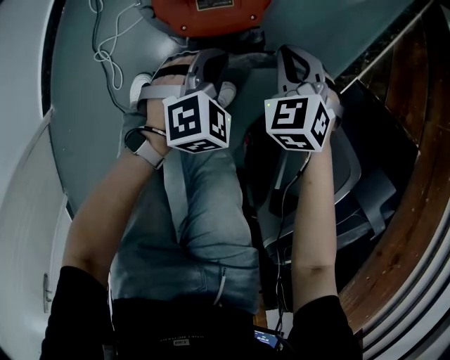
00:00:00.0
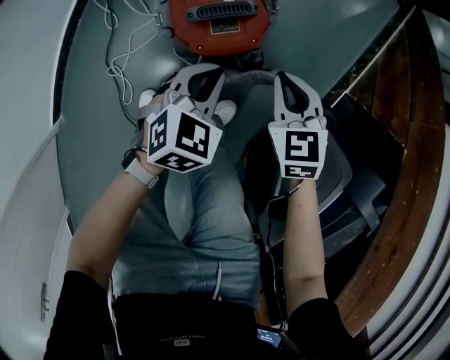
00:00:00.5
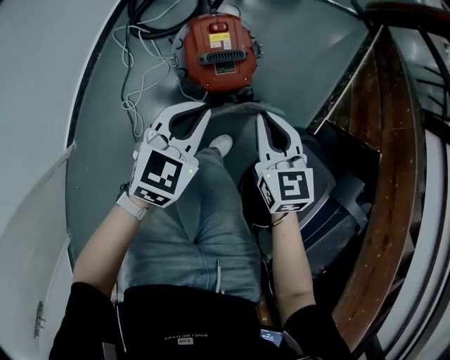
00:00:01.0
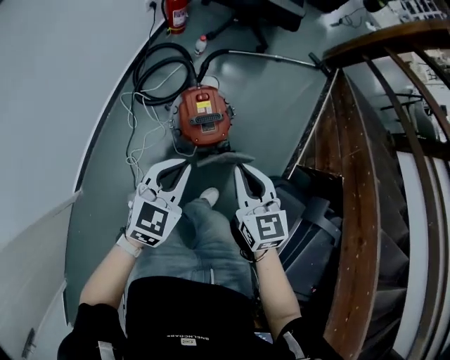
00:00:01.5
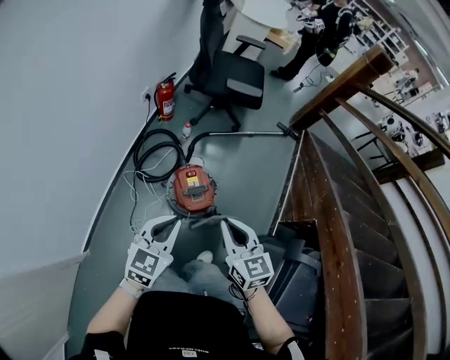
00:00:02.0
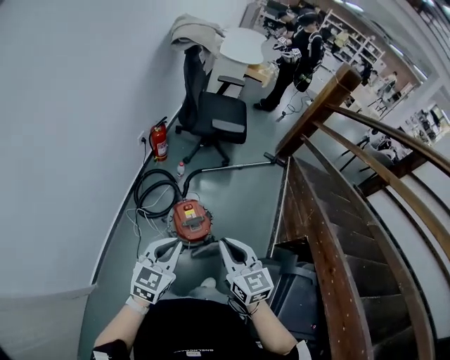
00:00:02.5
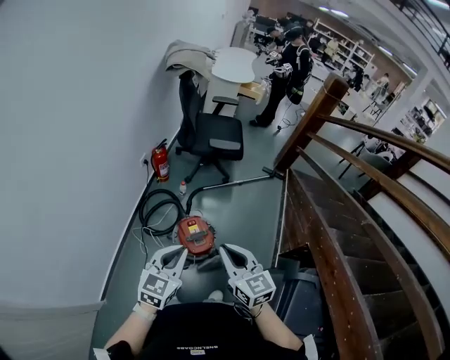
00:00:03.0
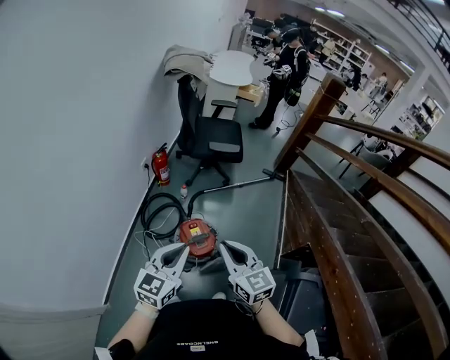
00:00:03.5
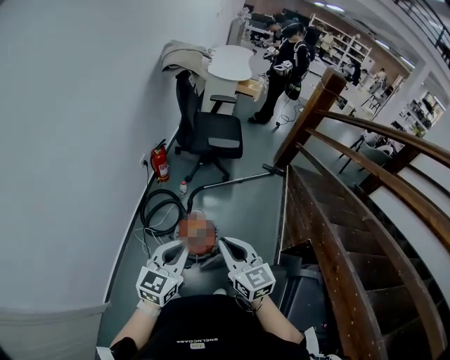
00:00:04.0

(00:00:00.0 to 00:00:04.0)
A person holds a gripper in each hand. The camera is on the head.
00:00:00.0 - 00:00:02.0: Both grippers travel together upward, some 60 cm. The right gripper points its fingers roughly 40 degrees further upward. Meanwhile the left gripper tips its fingers upward by about 40 degrees.
00:00:02.0 - 00:00:04.0: The grippers both shift upward by approximately 20 cm.

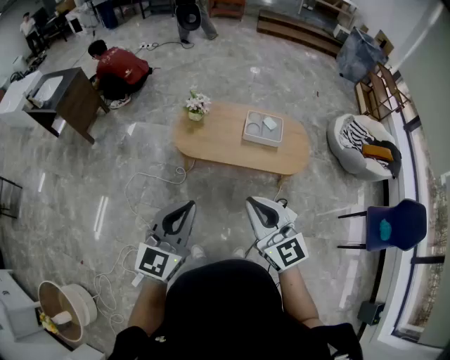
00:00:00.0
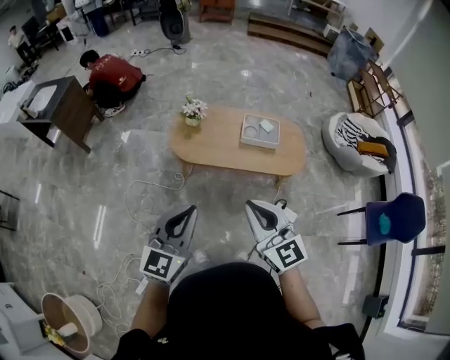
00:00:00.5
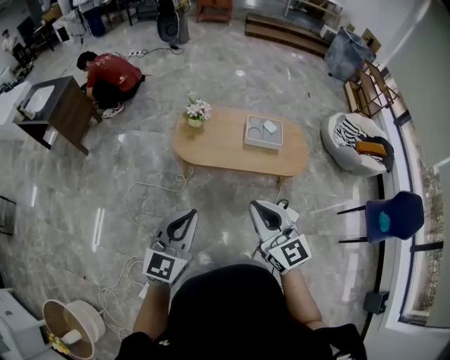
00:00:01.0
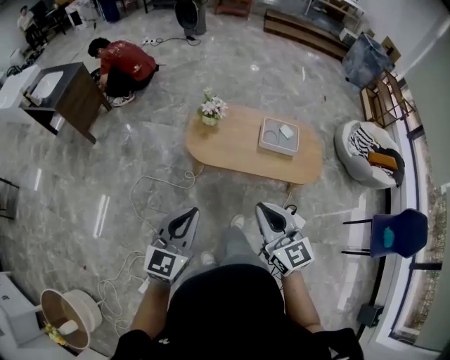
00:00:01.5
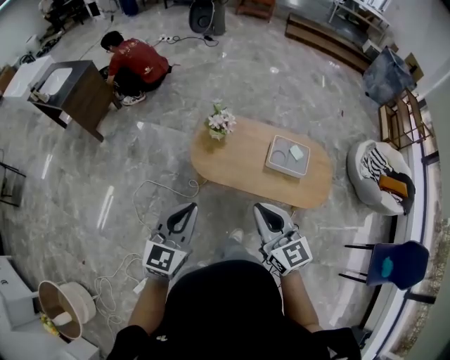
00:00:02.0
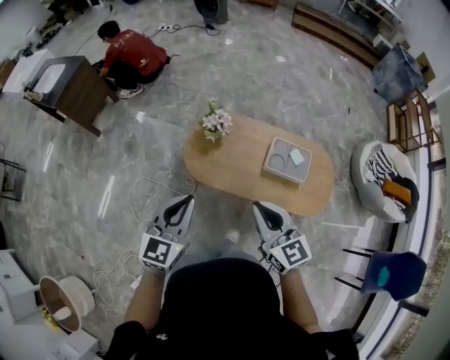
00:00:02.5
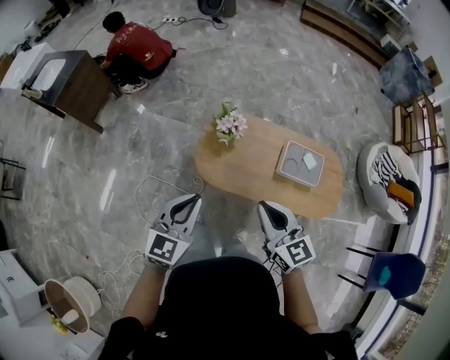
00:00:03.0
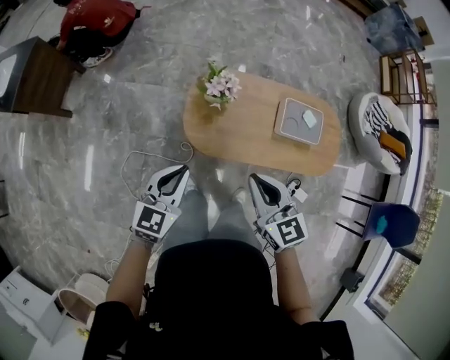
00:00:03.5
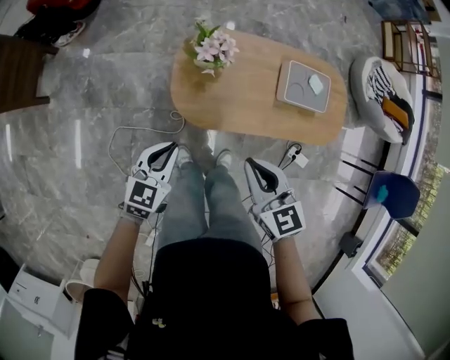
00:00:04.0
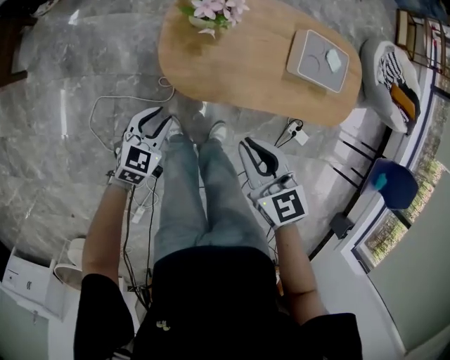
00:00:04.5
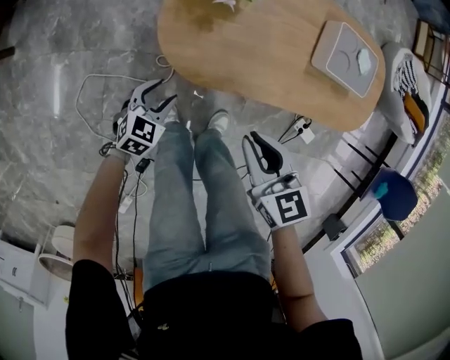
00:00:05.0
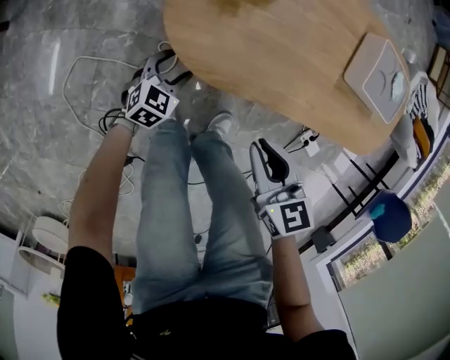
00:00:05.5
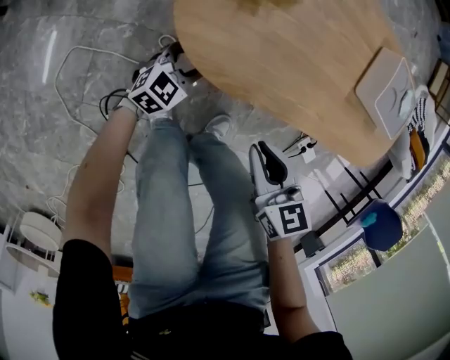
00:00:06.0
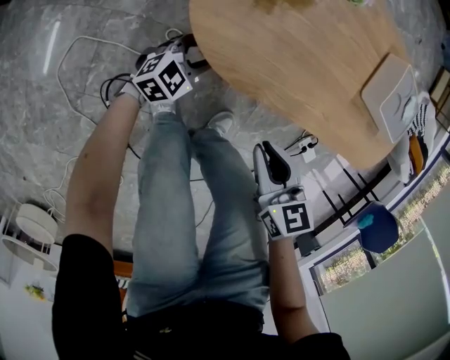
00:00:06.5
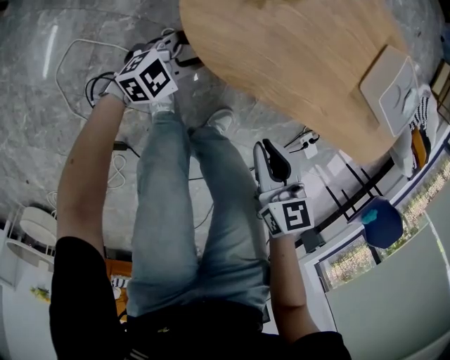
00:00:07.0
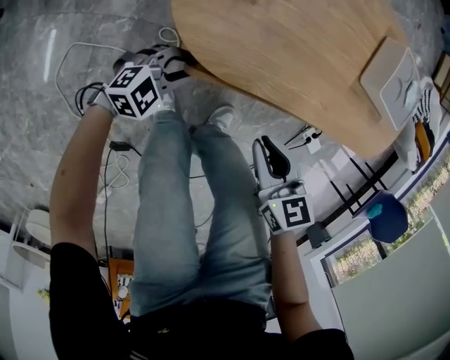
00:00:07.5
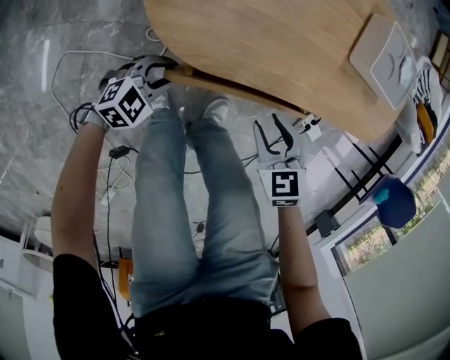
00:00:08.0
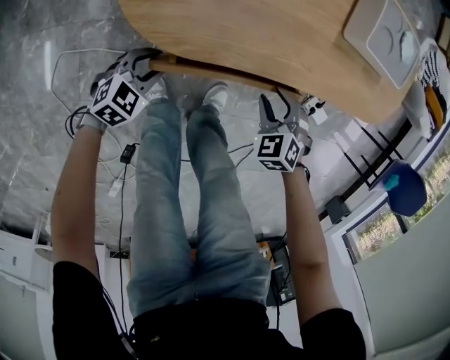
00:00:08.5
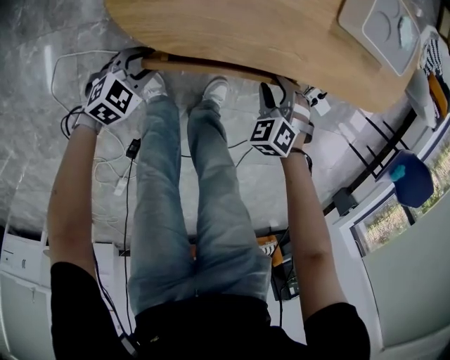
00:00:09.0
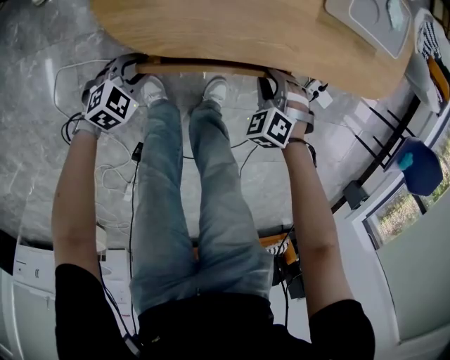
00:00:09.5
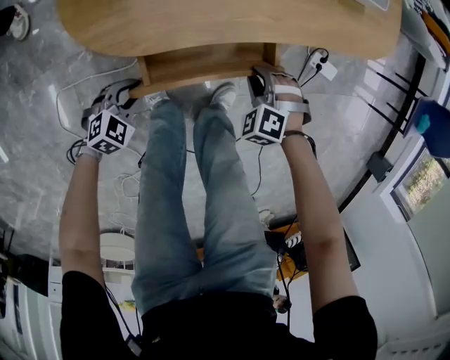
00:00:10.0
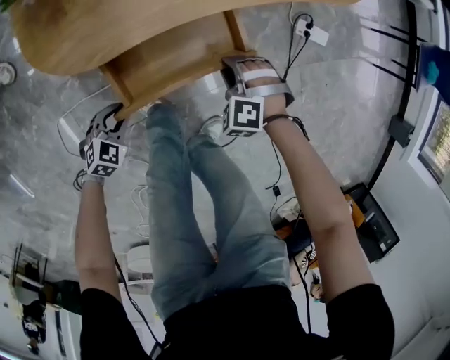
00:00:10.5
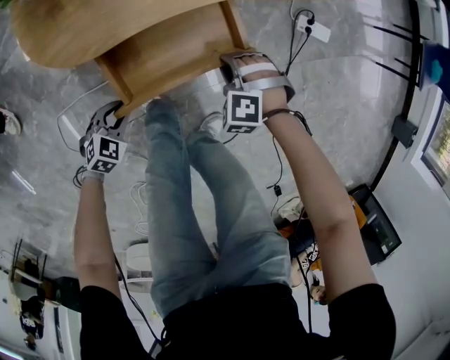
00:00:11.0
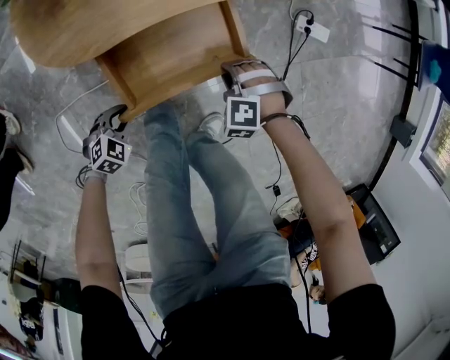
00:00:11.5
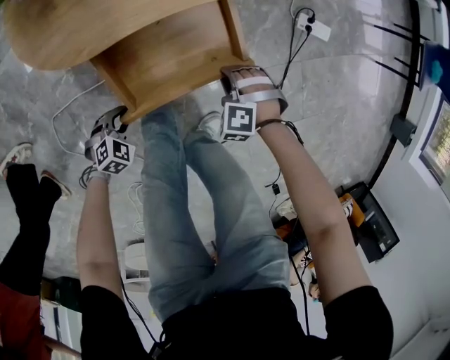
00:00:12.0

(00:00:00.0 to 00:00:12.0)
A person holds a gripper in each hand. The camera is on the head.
00:00:00.0 - 00:00:02.0: The right gripper moves forward, about 25 cm, while the left gripper travels forward and to the left by some 25 cm.
00:00:02.0 - 00:00:04.0: The left gripper heads downward, forward and to the left, covering roughly 40 cm, and turns by about 30 degrees. The right gripper shifts approximately 35 cm forward, downward and to the left, and turns by about 30 degrees.
00:00:04.0 - 00:00:06.0: The two grippers go roughly 50 cm downward. The left gripper opens up.
00:00:06.0 - 00:00:08.0: The left gripper travels backward by about 10 cm, changes its angle by some 20 degrees, and closes its fingers, while the right gripper goes some 5 cm to the right, turns by about 20 degrees, and opens its fingers.
00:00:08.0 - 00:00:10.0: The right gripper shifts by roughly 15 cm, and rotates some 40 degrees. Meanwhile the left gripper moves roughly 5 cm.
00:00:10.0 - 00:00:12.0: The right gripper moves about 15 cm. Meanwhile the left gripper changes place by about 15 cm.

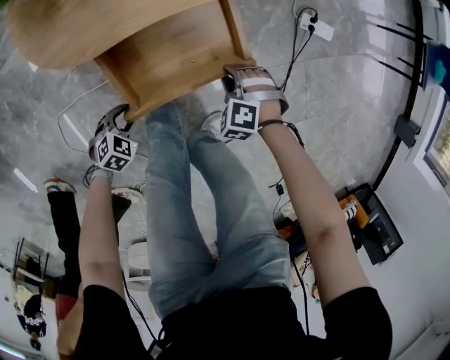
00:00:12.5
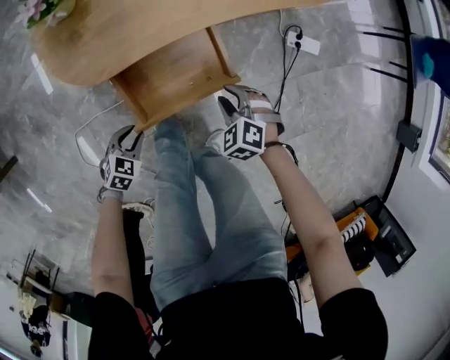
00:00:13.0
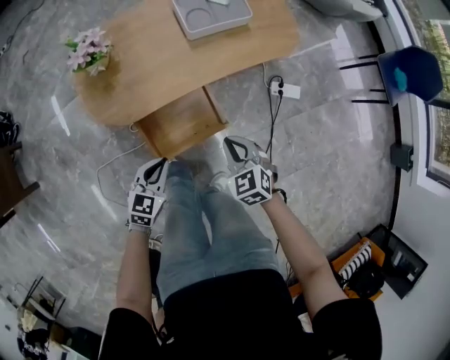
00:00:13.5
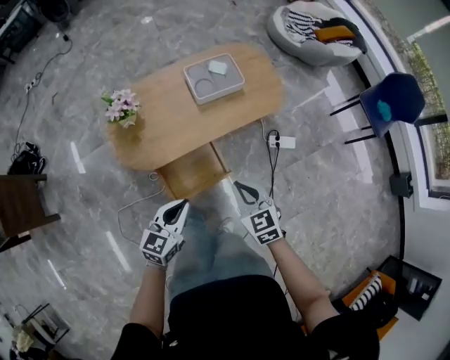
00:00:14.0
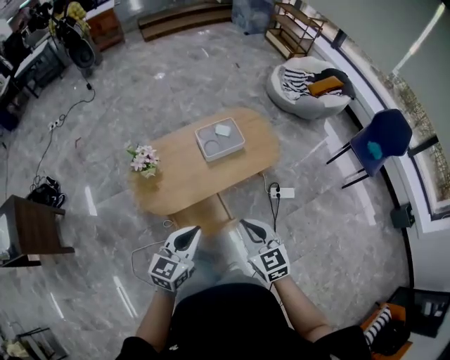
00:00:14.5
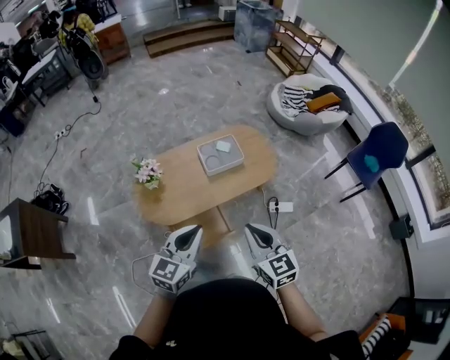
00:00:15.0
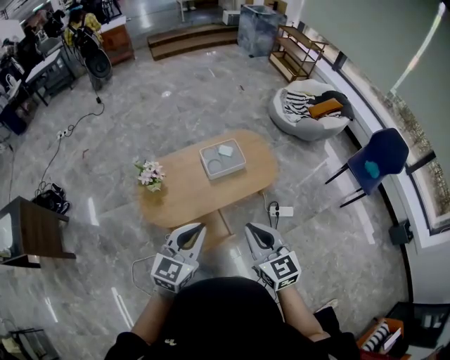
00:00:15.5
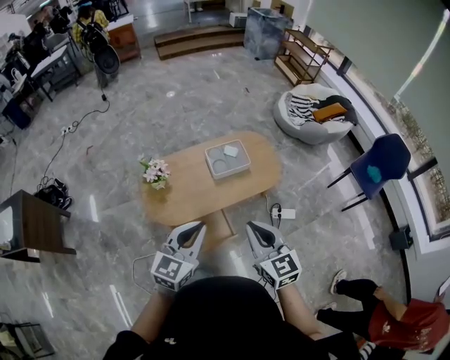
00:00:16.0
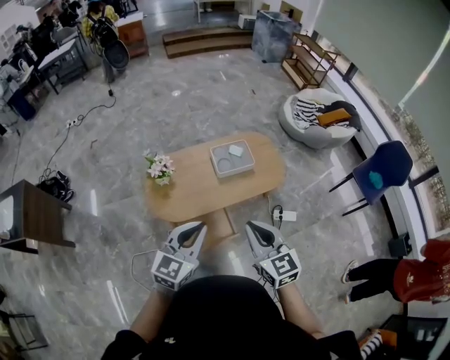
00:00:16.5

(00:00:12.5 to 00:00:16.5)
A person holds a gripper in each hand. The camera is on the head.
00:00:12.5 - 00:00:14.5: The grippers both shift upward by about 80 cm. The right gripper points its fingers some 50 degrees further upward, and closes. Meanwhile the left gripper angles its fingers upward, by approximately 50 degrees, and closes up.
00:00:14.5 - 00:00:16.5: Both grippers move upward, some 10 cm.

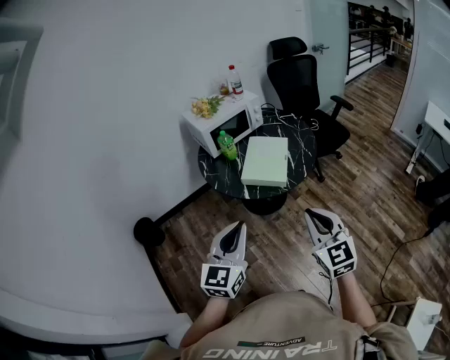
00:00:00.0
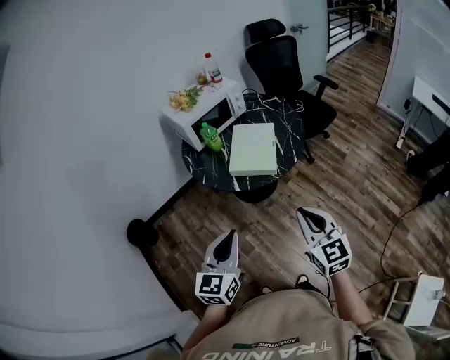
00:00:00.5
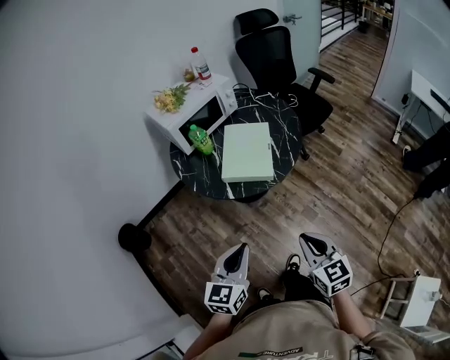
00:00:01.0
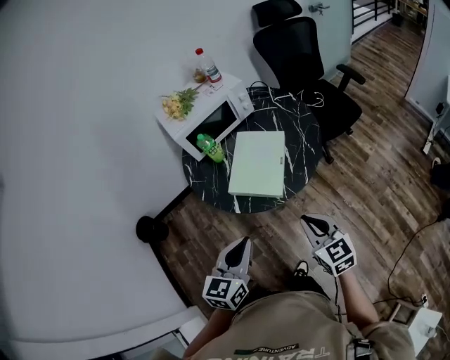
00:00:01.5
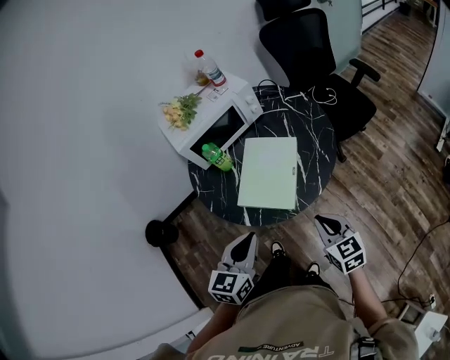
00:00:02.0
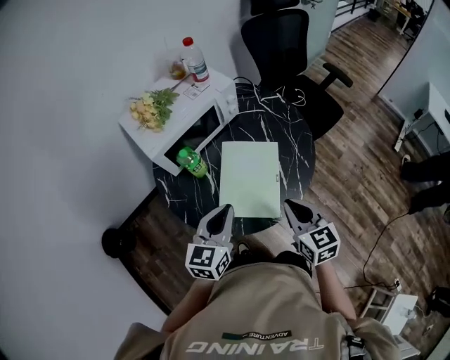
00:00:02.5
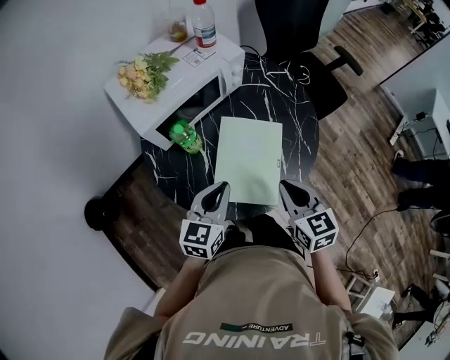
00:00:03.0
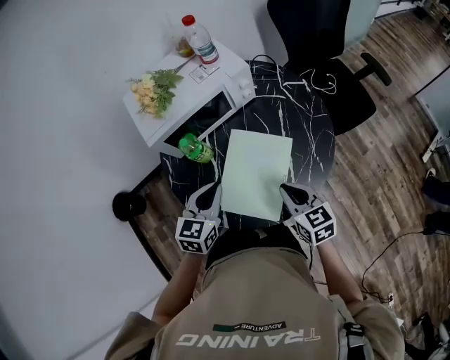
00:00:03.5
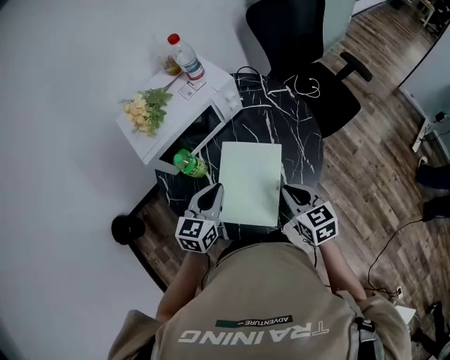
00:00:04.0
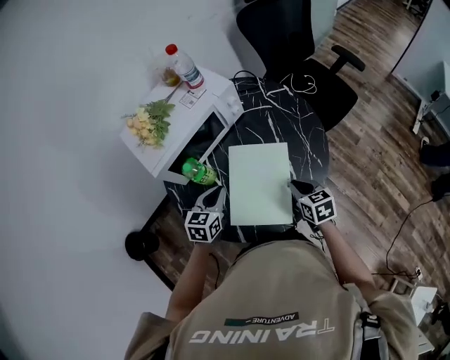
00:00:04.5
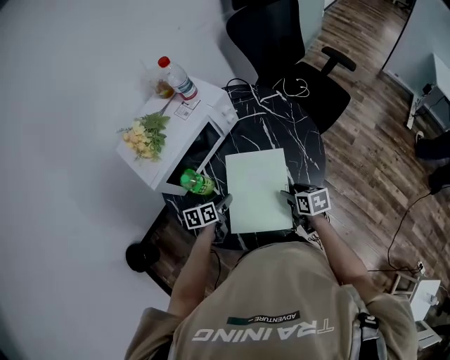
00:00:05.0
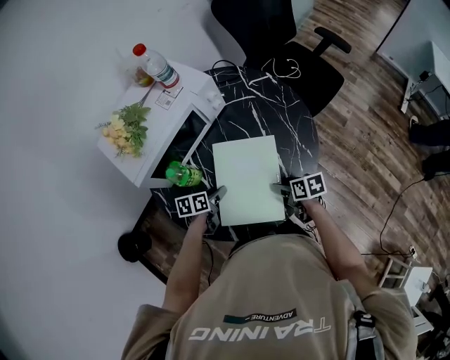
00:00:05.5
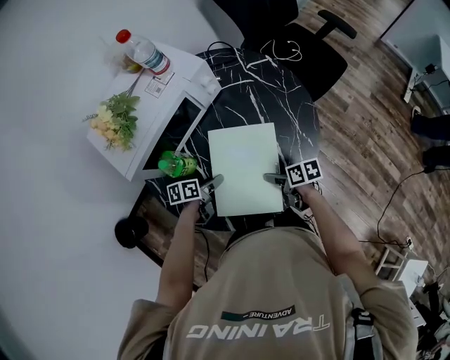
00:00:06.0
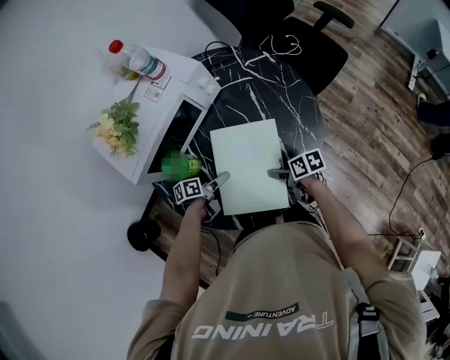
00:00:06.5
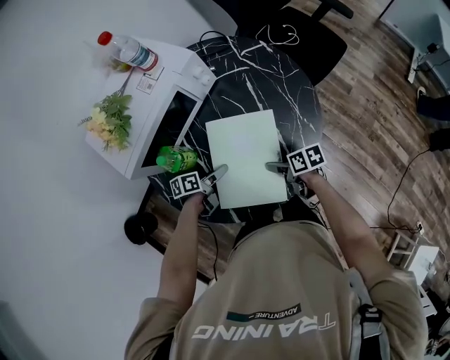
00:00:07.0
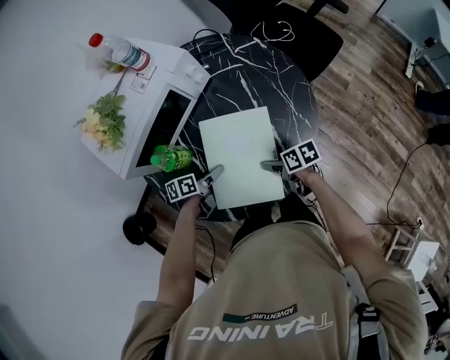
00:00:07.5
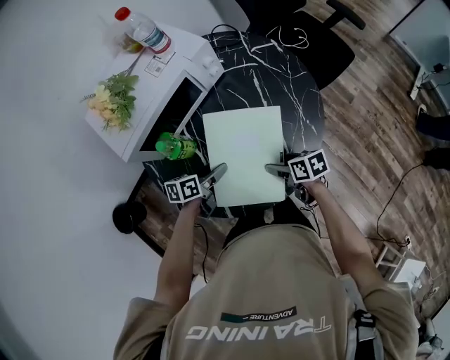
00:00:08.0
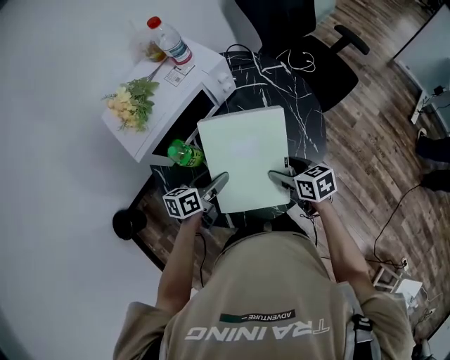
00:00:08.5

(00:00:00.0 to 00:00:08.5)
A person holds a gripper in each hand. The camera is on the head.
00:00:00.0 - 00:00:02.0: The two grippers go some 30 cm forward and downward. The left gripper rotates approximately 20 degrees; the right gripper changes its angle by about 30 degrees.
00:00:02.0 - 00:00:04.0: The two grippers go roughly 20 cm forward.
00:00:04.0 - 00:00:06.5: Both grippers travel together downward, roughly 20 cm. The left gripper rotates around the line of its fingers by approximately 50 degrees, counterclockwise from behind, and opens up. Meanwhile the right gripper rolls clockwise, seen from behind, by about 50 degrees, and opens up.
00:00:06.5 - 00:00:08.5: Both grippers move upward, approximately 15 cm. The left gripper turns by about 30 degrees; the right gripper rotates about 30 degrees.
